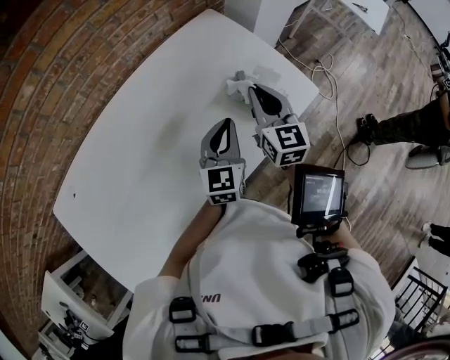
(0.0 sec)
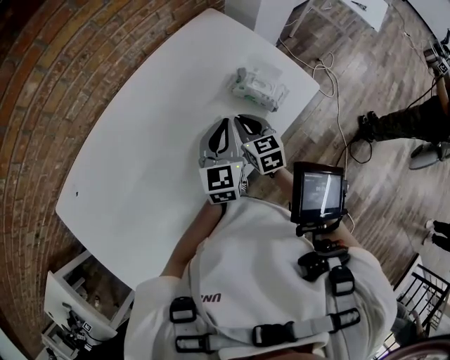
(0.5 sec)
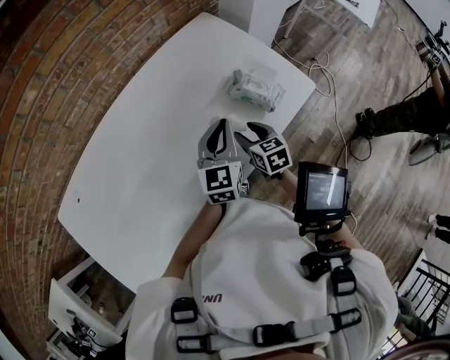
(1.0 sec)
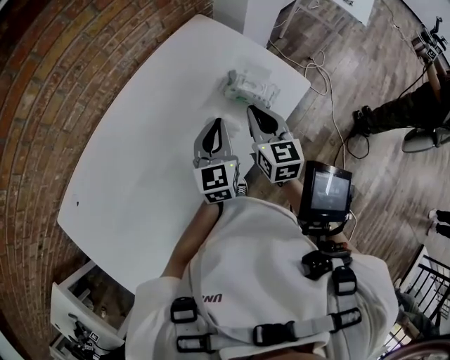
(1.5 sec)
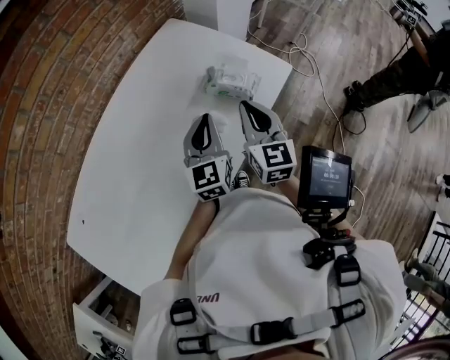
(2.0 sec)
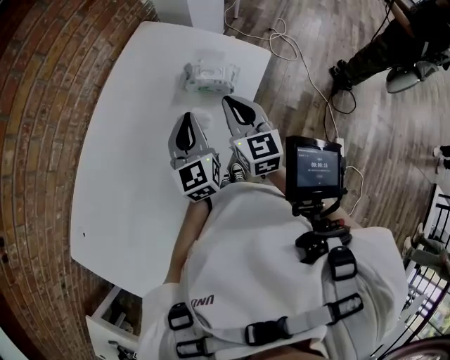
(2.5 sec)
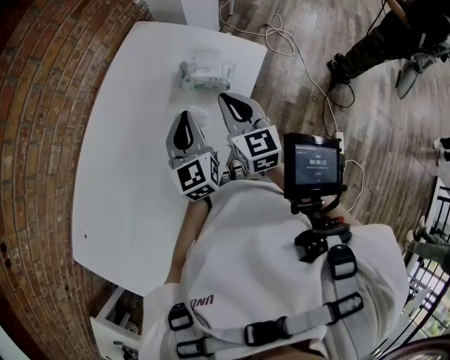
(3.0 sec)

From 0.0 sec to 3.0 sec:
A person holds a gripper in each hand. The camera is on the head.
From 0.0 sec to 1.5 sec: The right gripper travels backward by approximately 5 cm, moves about 15 cm downward and comes back, and opens and closes again.
From 1.5 sec to 3.0 sec: The grippers stay close to where they were, moving slightly.

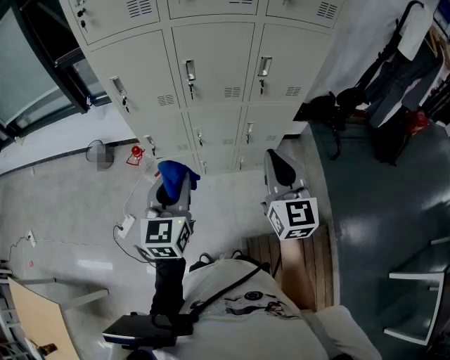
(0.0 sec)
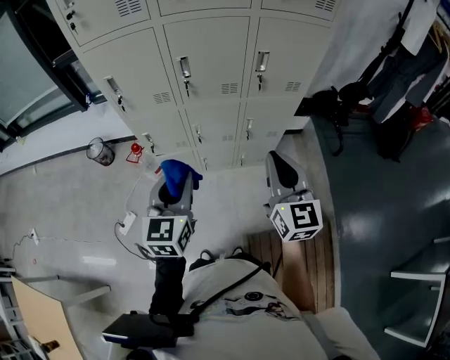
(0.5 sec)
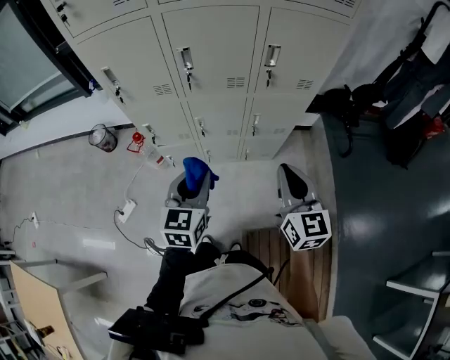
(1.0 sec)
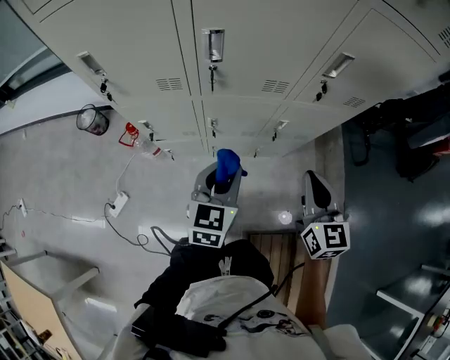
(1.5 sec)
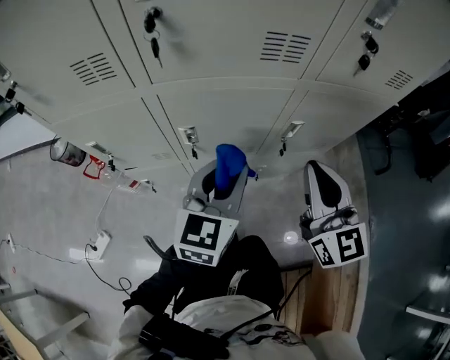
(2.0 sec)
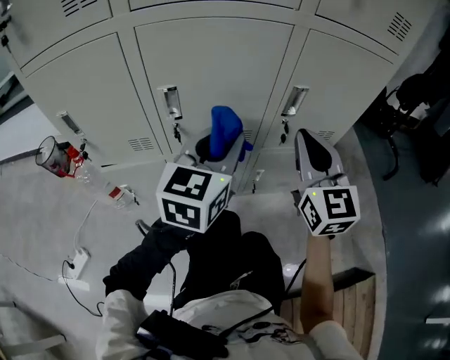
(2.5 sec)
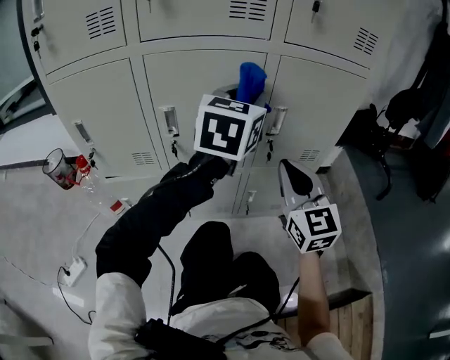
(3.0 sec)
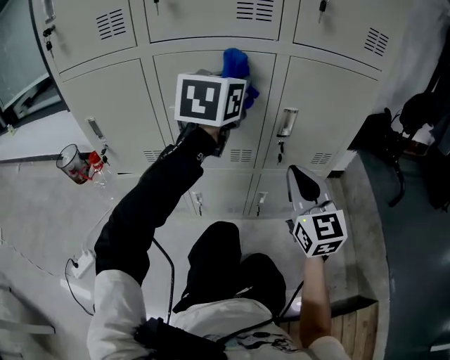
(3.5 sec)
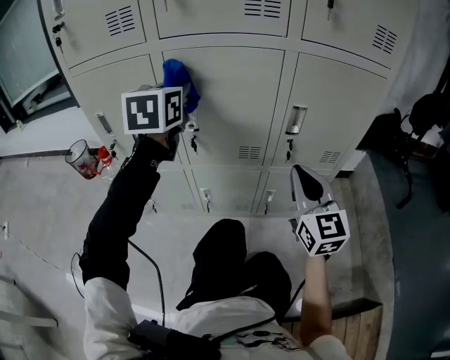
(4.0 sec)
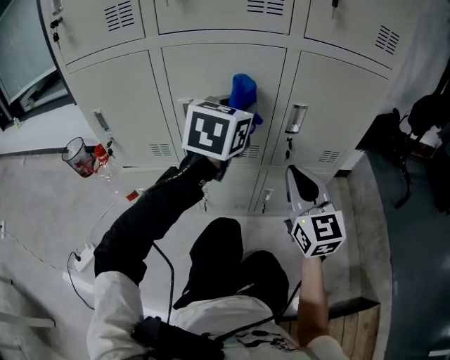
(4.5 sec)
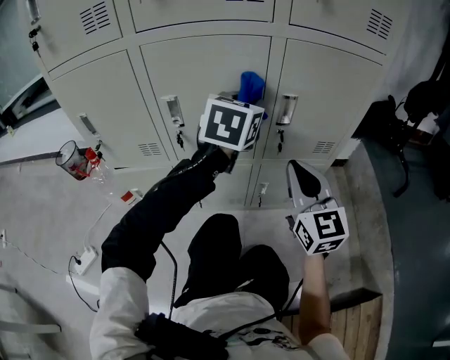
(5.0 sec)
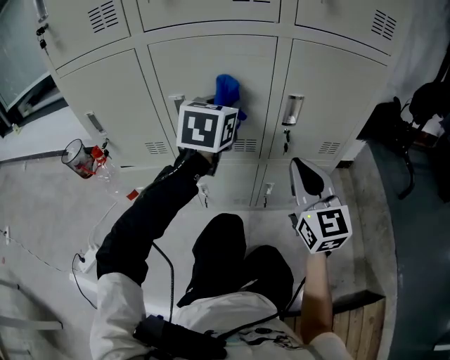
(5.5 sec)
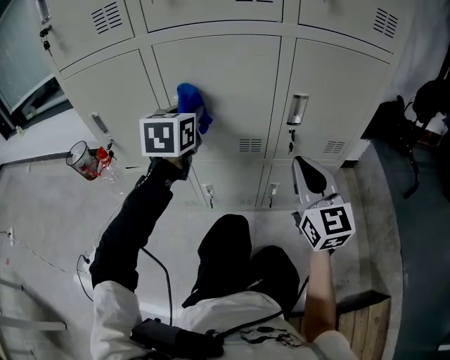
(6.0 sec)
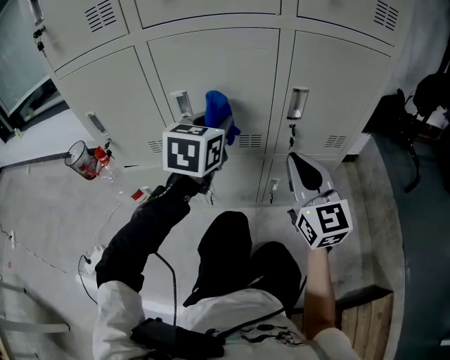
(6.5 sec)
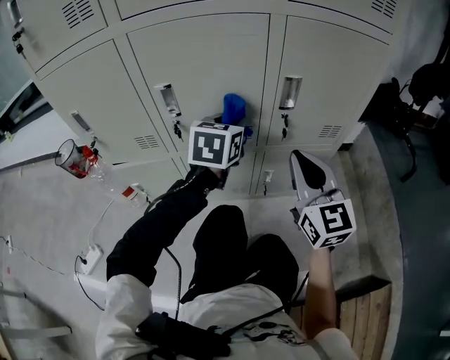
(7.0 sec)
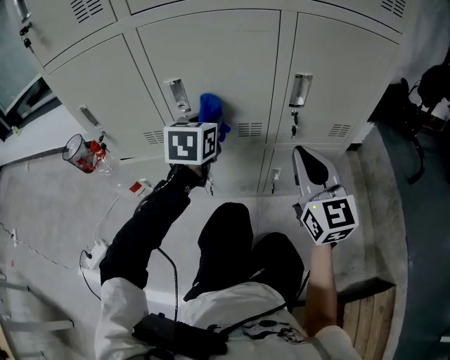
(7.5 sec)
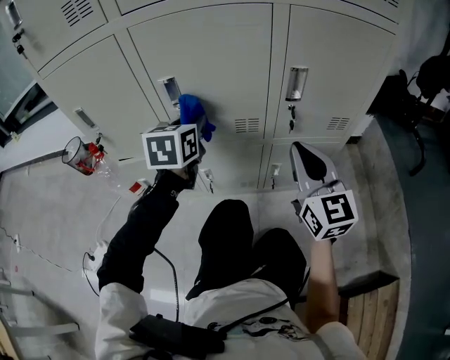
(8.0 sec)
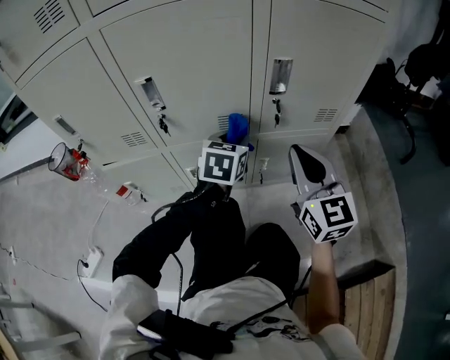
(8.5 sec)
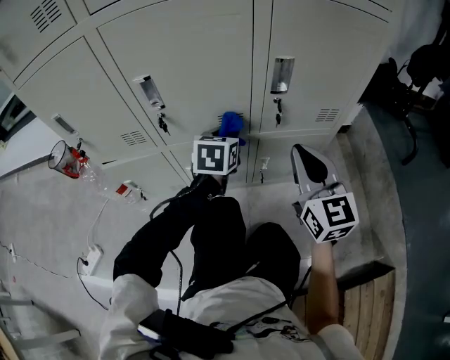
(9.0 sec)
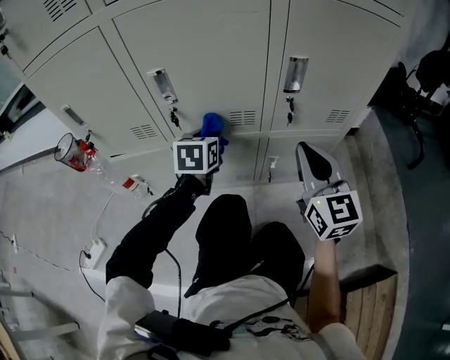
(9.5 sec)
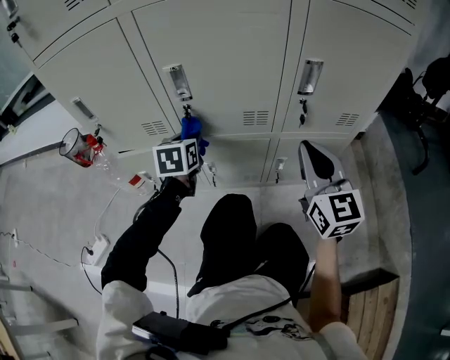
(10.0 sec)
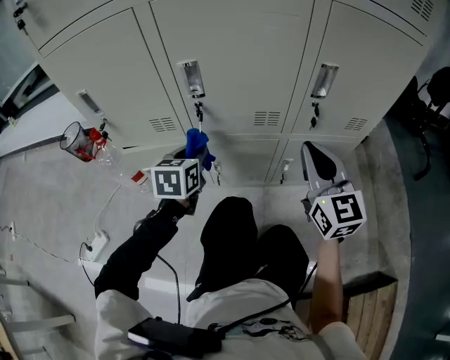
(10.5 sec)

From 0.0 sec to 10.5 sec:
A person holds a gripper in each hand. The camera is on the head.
From 0.0 sec to 2.0 sec: Both grippers move downward and forward, approximately 40 cm.
From 2.0 sec to 4.0 sec: The left gripper shifts some 15 cm to the left and forward, and turns by some 20 degrees. The right gripper shifts approximately 20 cm downward.
From 4.0 sec to 6.5 sec: The left gripper goes left and right, approximately 20 cm each way, reversing 2 times.
From 6.5 sec to 8.5 sec: The left gripper heads downward and to the right, covering some 20 cm; the right gripper changes place by about 5 cm.
From 8.5 sec to 10.5 sec: The left gripper moves to the left, approximately 20 cm; the right gripper travels to the left by about 5 cm.

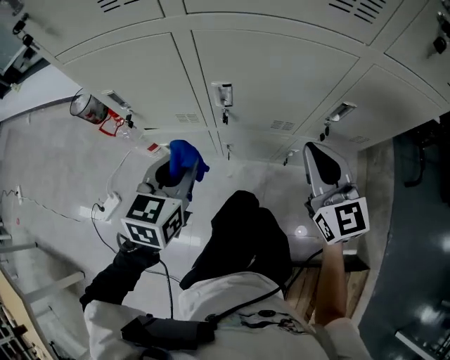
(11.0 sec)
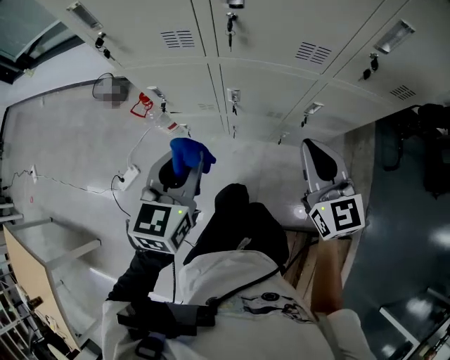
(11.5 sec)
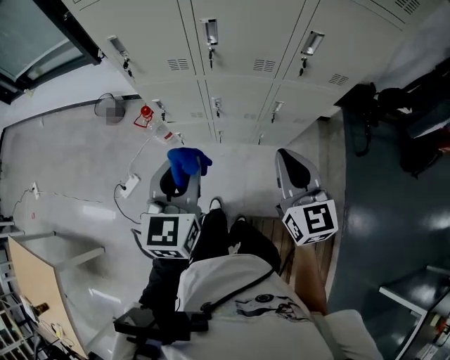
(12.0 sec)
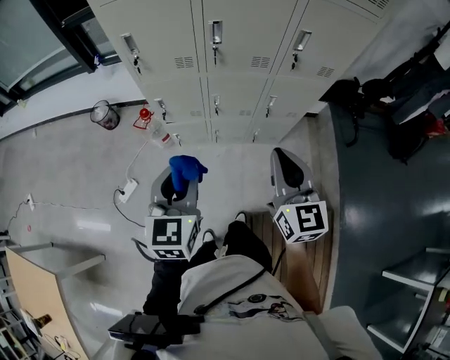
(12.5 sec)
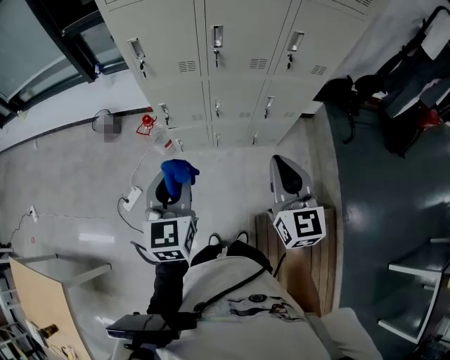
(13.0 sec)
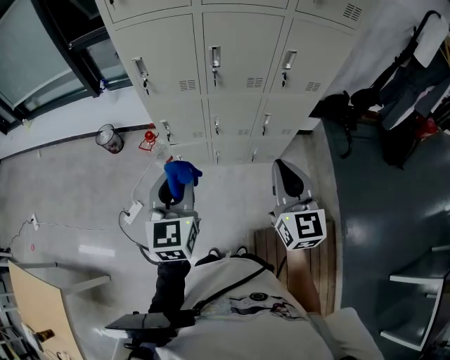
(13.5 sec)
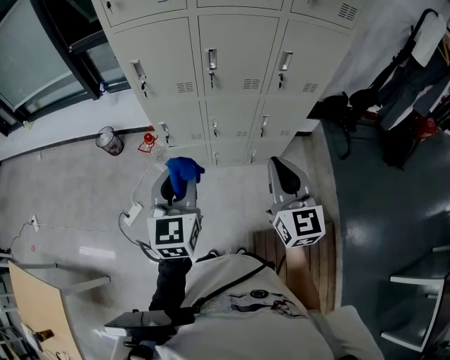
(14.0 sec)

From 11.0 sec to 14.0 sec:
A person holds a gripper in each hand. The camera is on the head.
From 11.0 sec to 12.5 sec: The two grippers go roughly 50 cm upward and backward.
From 12.5 sec to 14.0 sec: The left gripper heads upward, covering some 5 cm, while the right gripper moves about 5 cm.

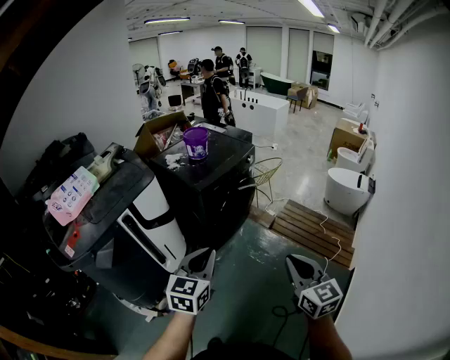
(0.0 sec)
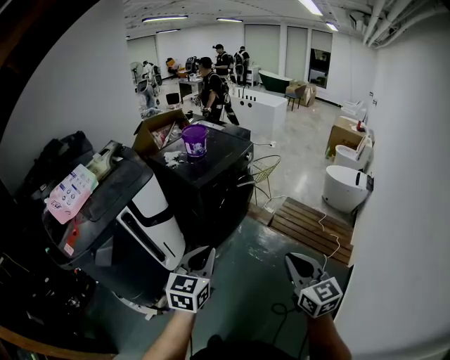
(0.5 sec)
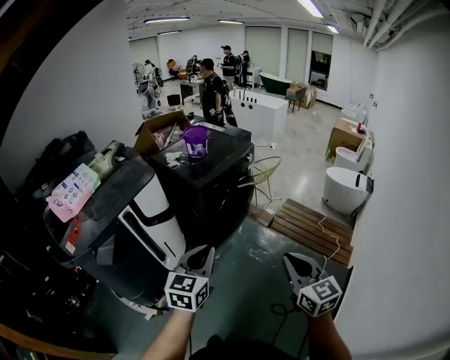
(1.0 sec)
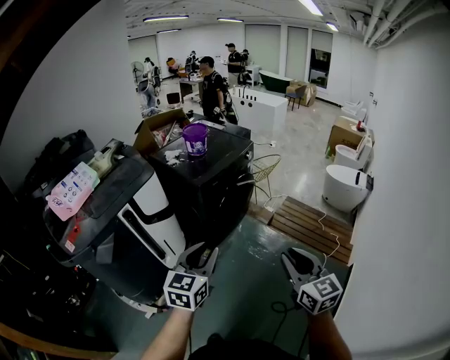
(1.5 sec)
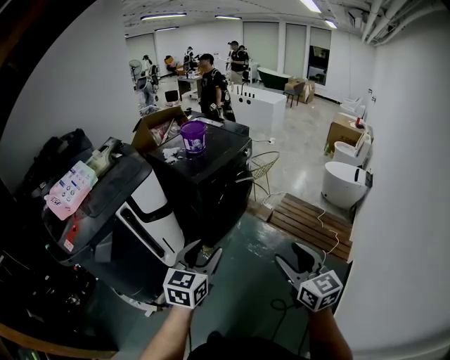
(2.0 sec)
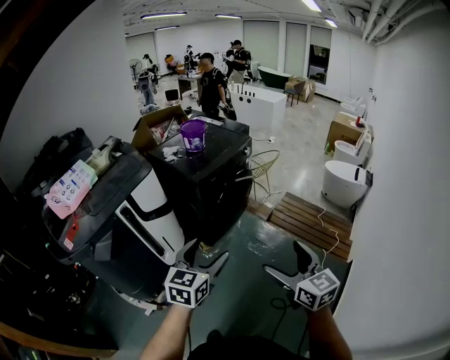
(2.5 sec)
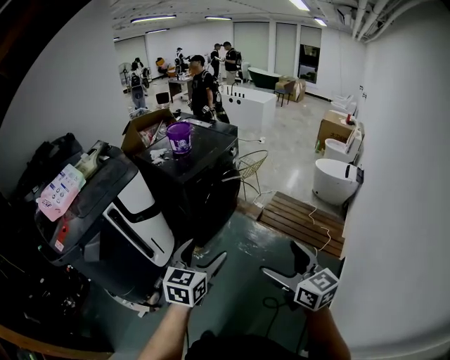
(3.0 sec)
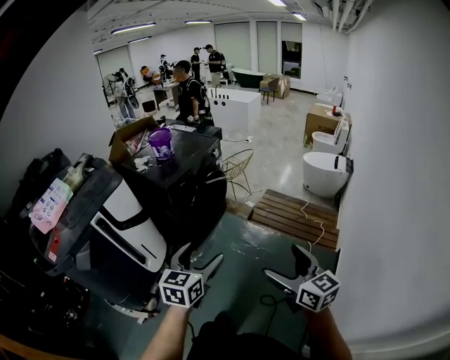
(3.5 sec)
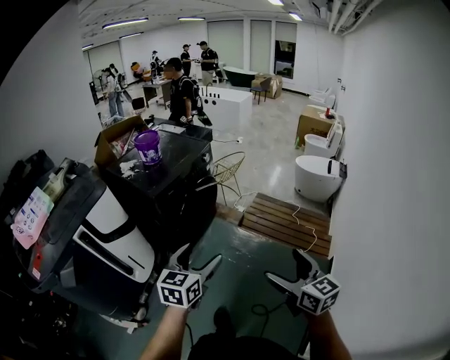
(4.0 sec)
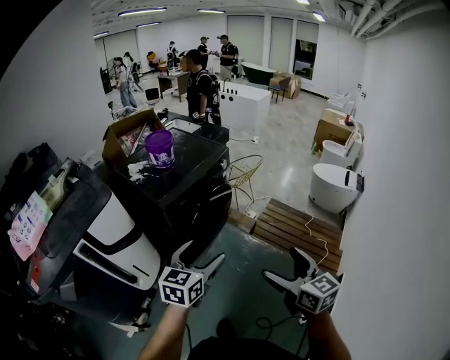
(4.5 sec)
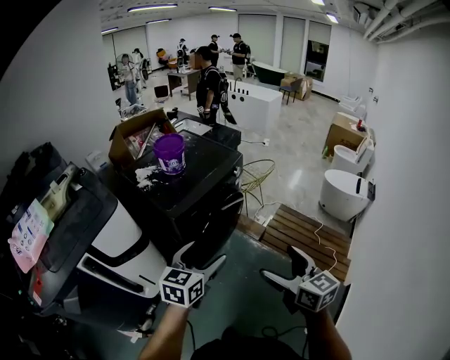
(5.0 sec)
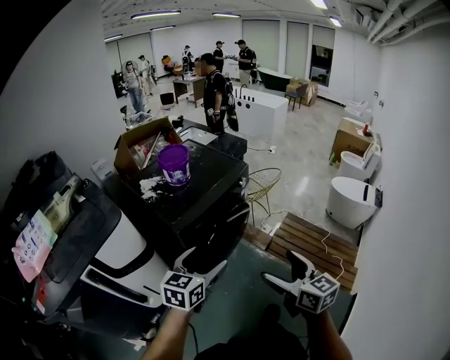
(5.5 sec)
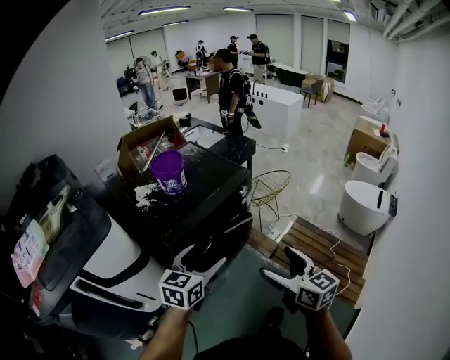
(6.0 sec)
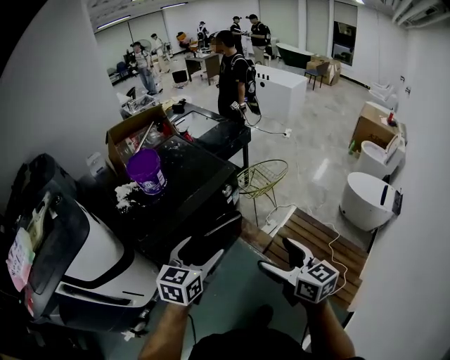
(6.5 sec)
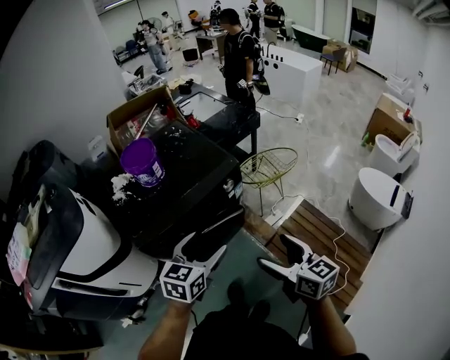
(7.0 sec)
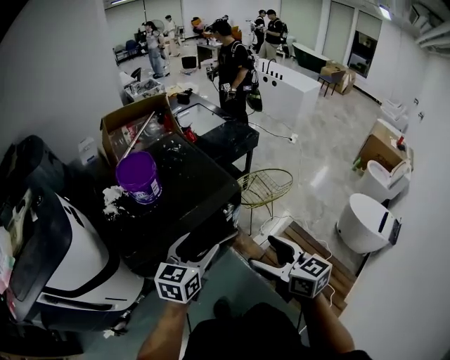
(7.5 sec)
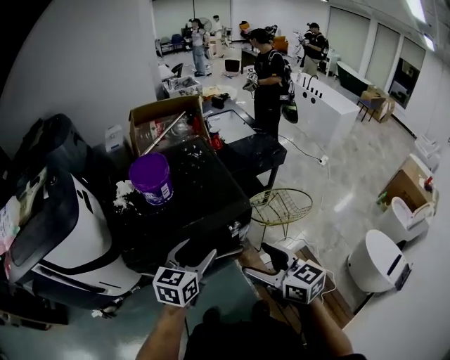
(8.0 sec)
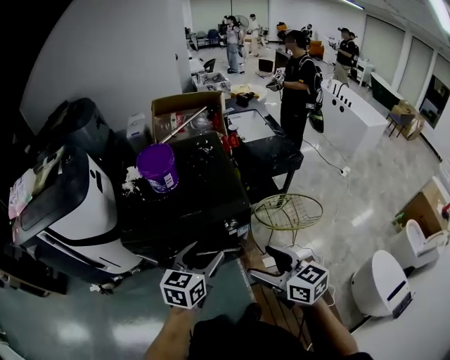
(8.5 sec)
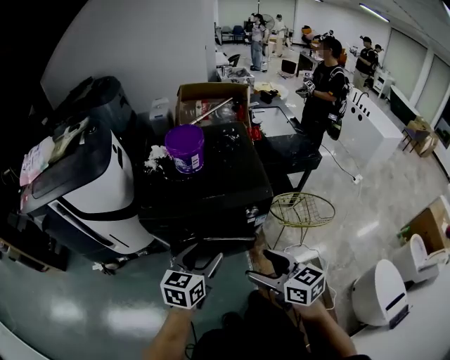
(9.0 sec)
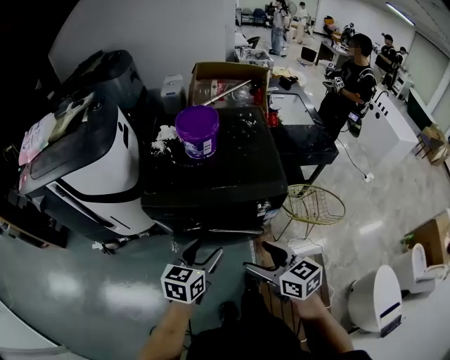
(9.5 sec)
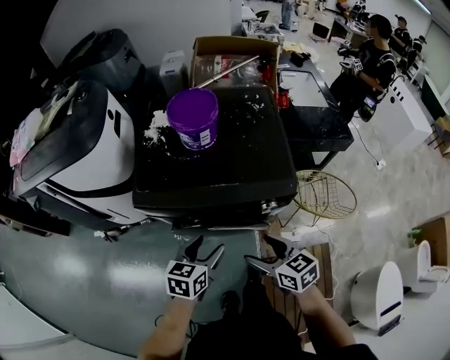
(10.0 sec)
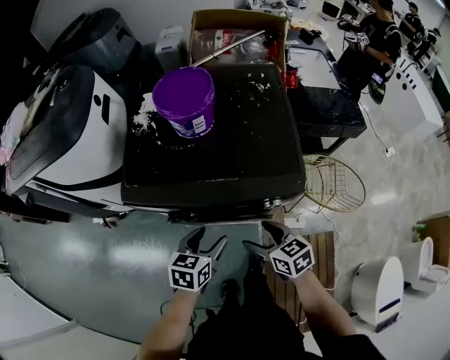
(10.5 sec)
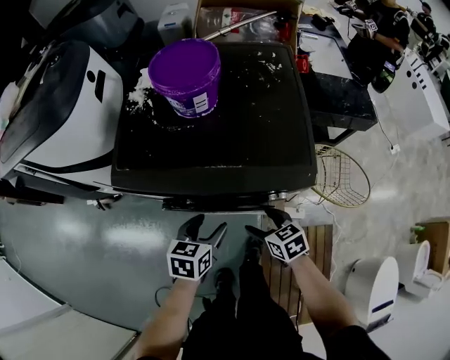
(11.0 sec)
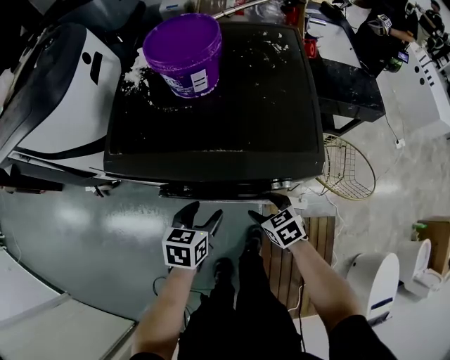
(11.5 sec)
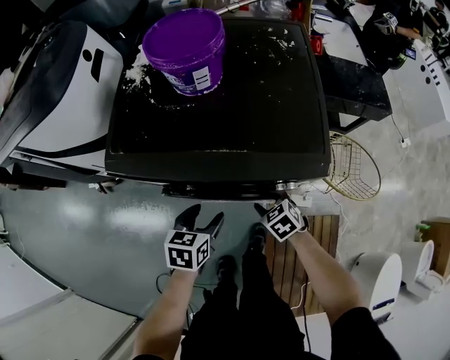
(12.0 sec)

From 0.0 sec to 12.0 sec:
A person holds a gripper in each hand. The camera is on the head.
From 0.0 sec to 2.0 sec: The right gripper opens. The left gripper opens.
From 2.0 sec to 4.0 sec: The right gripper travels to the right by some 15 cm, and opens up; the left gripper shifts some 15 cm to the right and forward, and opens its fingers.
From 4.0 sec to 6.0 sec: Both grippers travel together forward, about 35 cm.
From 6.0 sec to 8.0 sec: The right gripper ends up approximately 30 cm from where it was, and changes its angle by approximately 30 degrees. Meanwhile the left gripper moves roughly 25 cm, and changes its angle by roughly 20 degrees.
From 8.0 sec to 10.0 sec: The two grippers go some 15 cm downward. The right gripper rotates about 30 degrees. The left gripper changes its angle by approximately 30 degrees.
From 10.0 sec to 12.0 sec: The left gripper shifts approximately 15 cm downward. The right gripper goes roughly 25 cm downward, and angles its fingers downward, by some 30 degrees.
